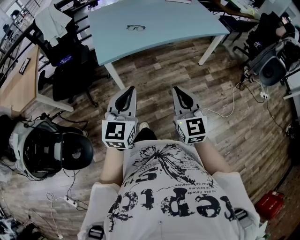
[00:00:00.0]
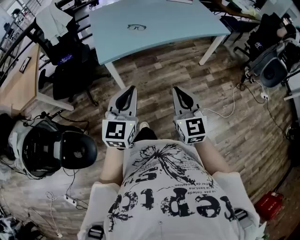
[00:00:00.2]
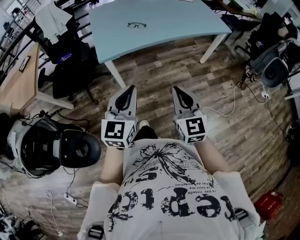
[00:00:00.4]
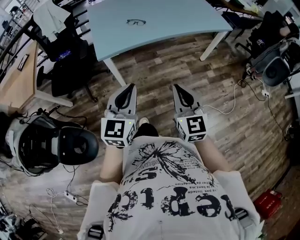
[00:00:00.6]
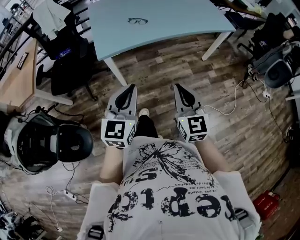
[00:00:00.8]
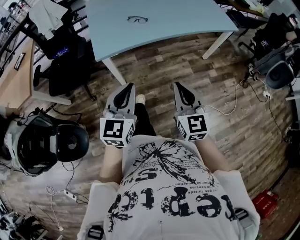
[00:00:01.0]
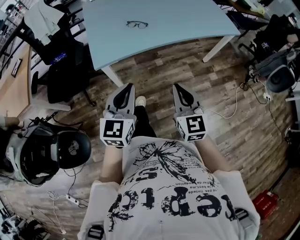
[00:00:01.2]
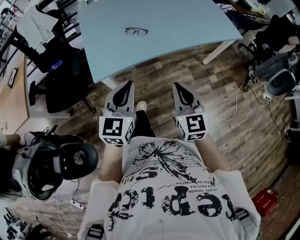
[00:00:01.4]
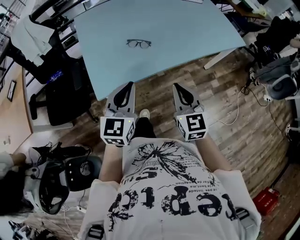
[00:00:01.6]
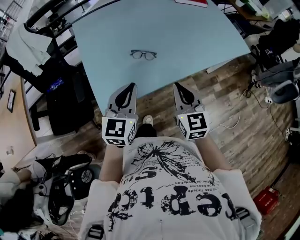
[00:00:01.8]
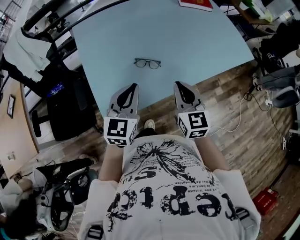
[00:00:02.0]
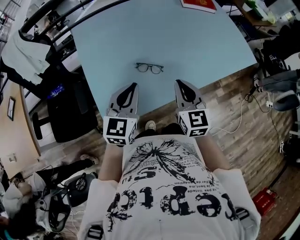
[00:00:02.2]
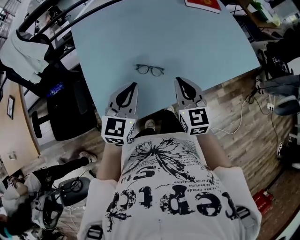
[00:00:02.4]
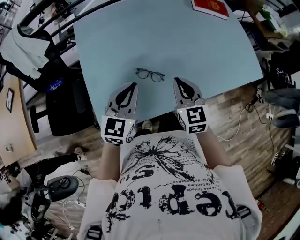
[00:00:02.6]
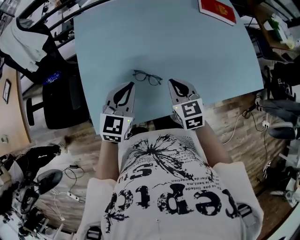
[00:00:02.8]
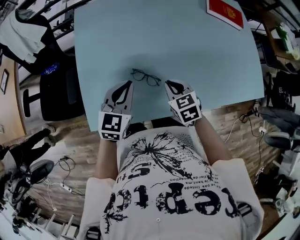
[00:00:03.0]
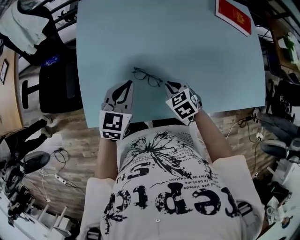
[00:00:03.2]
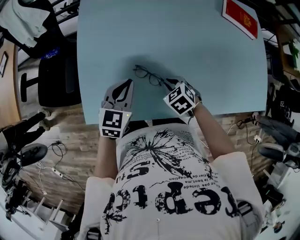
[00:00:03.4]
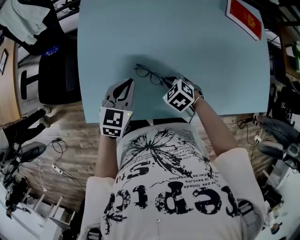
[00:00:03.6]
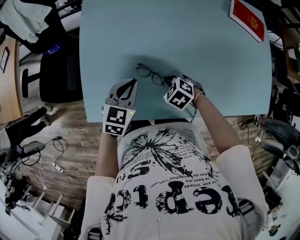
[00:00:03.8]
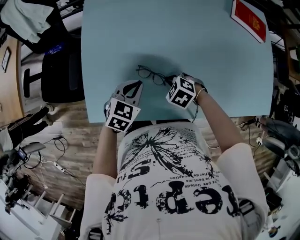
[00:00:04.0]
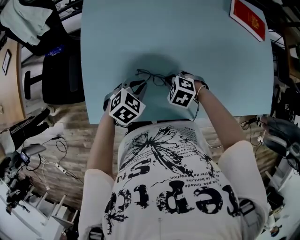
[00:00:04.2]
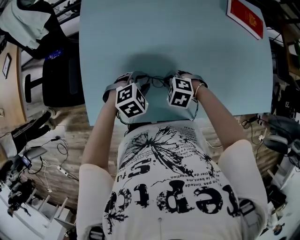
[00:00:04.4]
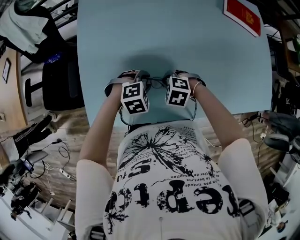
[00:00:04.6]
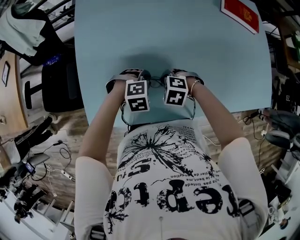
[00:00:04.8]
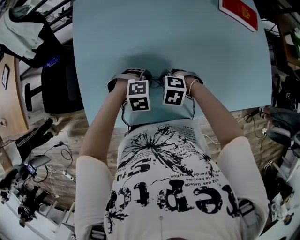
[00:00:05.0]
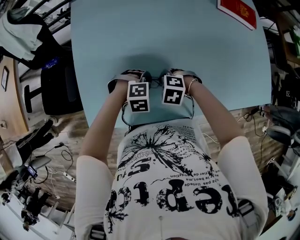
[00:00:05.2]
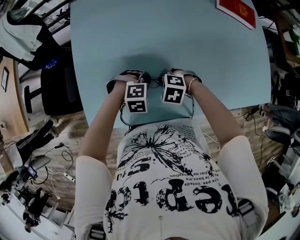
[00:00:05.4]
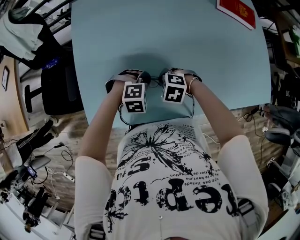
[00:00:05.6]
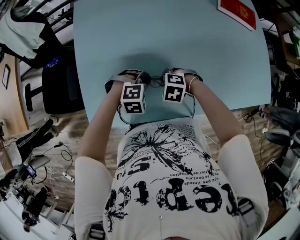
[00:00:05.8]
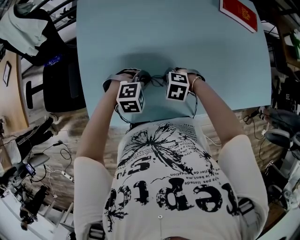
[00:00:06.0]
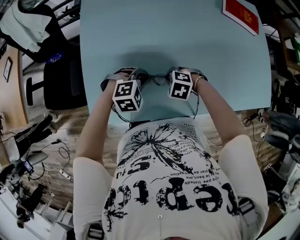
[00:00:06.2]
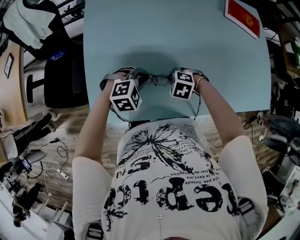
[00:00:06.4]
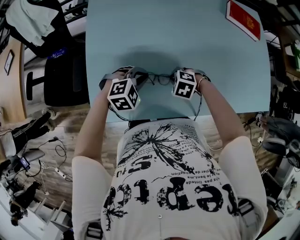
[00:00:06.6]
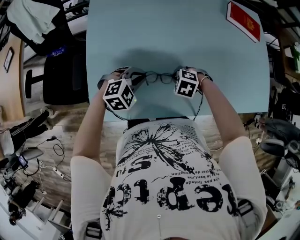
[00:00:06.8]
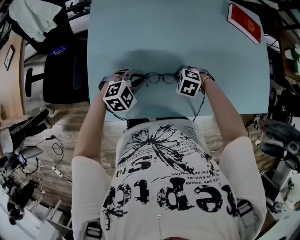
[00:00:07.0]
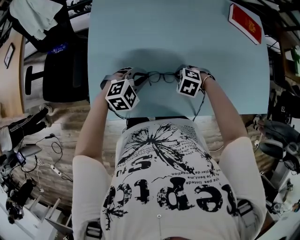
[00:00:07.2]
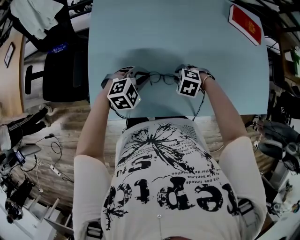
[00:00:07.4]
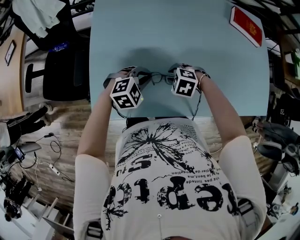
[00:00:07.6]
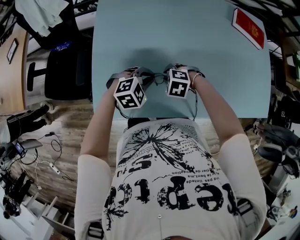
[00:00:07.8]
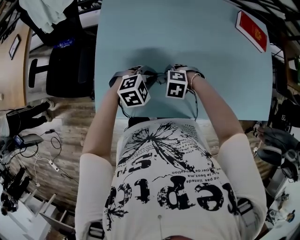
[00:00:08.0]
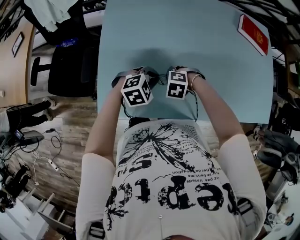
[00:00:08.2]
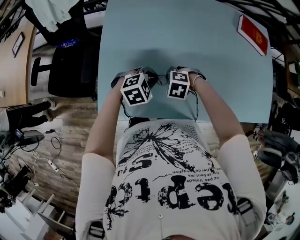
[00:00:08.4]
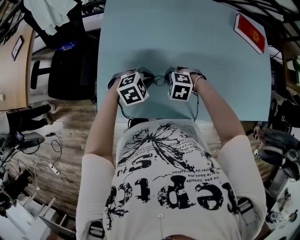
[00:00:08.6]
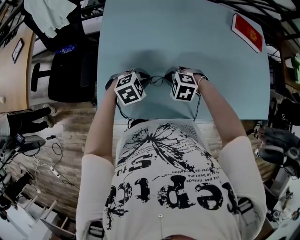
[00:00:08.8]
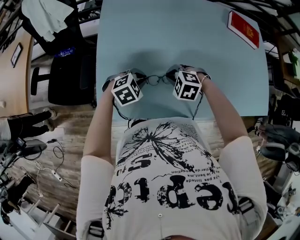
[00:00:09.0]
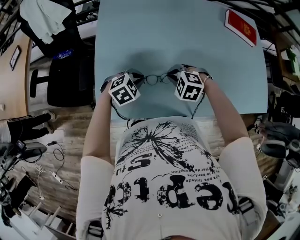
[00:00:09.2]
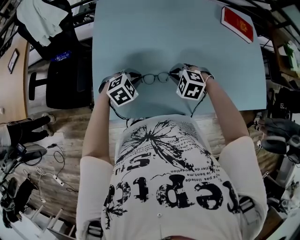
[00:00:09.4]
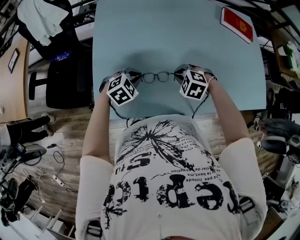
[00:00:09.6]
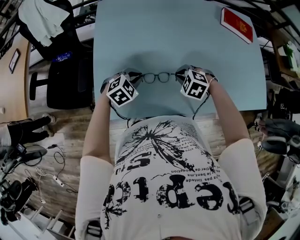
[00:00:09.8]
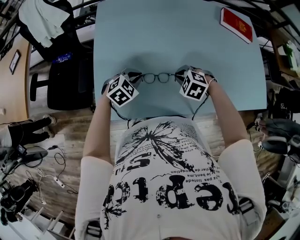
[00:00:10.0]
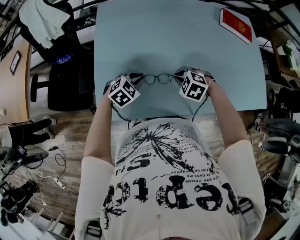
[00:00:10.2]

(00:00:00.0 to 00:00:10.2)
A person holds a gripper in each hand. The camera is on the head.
00:00:00.0 - 00:00:01.4: The two grippers go approximately 20 cm forward.
00:00:01.4 - 00:00:03.0: The pair of grippers is taken forward, about 40 cm. The right gripper points its fingers some 30 degrees further downward.
00:00:03.0 - 00:00:04.4: The grippers both shift downward by approximately 10 cm. The right gripper rolls counterclockwise, seen from behind, by some 50 degrees. The left gripper points its fingers approximately 40 degrees further downward, and opens up.
00:00:04.4 - 00:00:05.8: The left gripper rotates some 30 degrees, and closes up.
00:00:05.8 - 00:00:07.2: The left gripper ends up about 10 cm from where it was, and changes its angle by approximately 20 degrees.
00:00:07.2 - 00:00:08.8: The right gripper changes place by roughly 10 cm.
00:00:08.8 - 00:00:10.2: The right gripper heads to the right, covering approximately 5 cm.

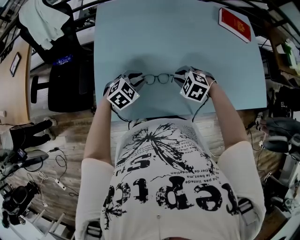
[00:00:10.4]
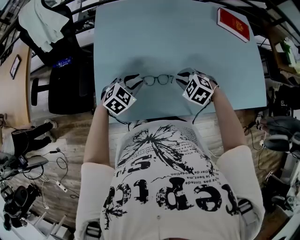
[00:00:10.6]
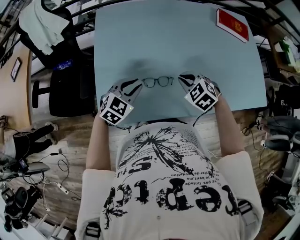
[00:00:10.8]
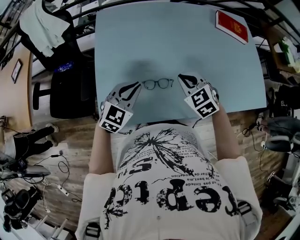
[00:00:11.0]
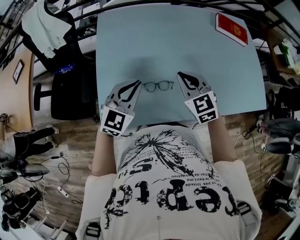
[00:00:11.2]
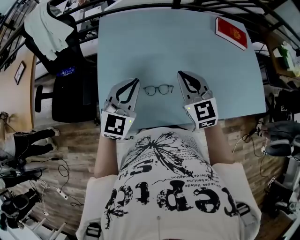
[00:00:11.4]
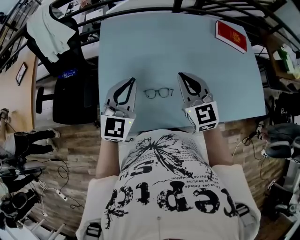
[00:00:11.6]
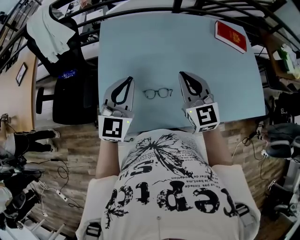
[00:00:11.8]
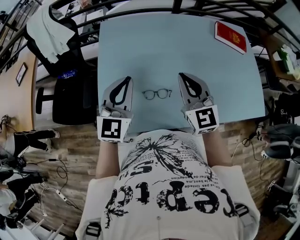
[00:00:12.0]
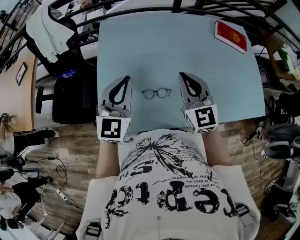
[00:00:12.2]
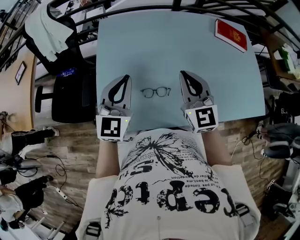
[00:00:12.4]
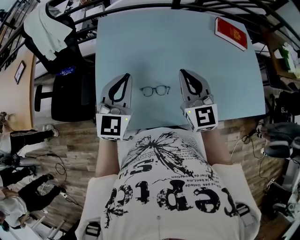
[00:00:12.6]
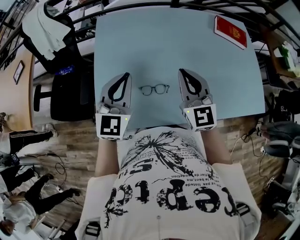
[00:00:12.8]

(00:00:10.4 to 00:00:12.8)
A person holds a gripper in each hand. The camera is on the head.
00:00:10.4 - 00:00:11.6: Both grippers move upward, roughly 20 cm. The right gripper tilts its fingers some 50 degrees upward. Meanwhile the left gripper angles its fingers upward, by about 40 degrees.
00:00:11.6 - 00:00:12.8: The grippers make only small movements.

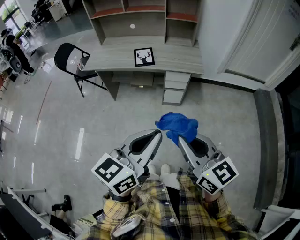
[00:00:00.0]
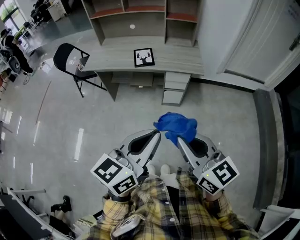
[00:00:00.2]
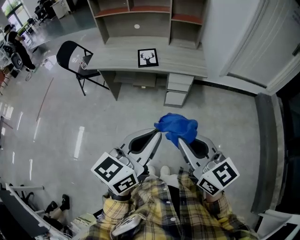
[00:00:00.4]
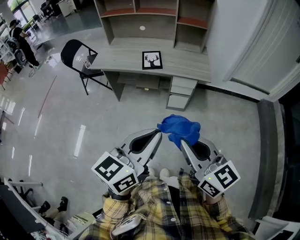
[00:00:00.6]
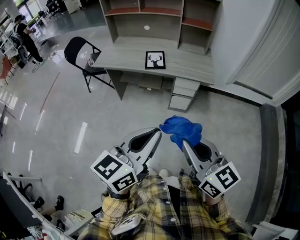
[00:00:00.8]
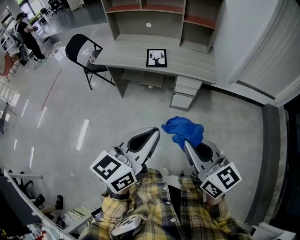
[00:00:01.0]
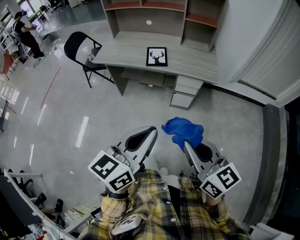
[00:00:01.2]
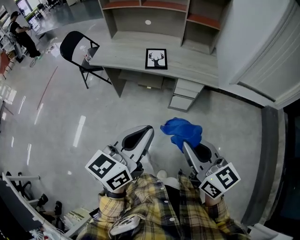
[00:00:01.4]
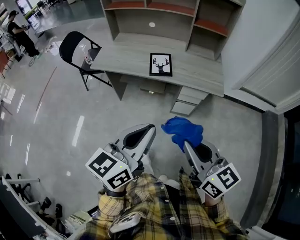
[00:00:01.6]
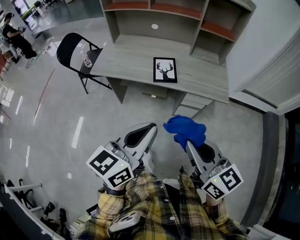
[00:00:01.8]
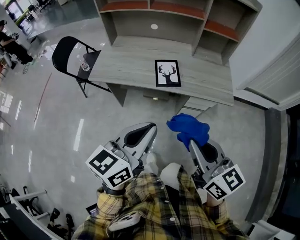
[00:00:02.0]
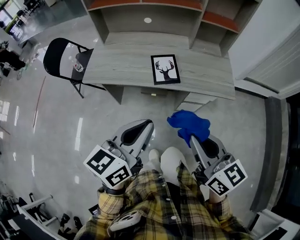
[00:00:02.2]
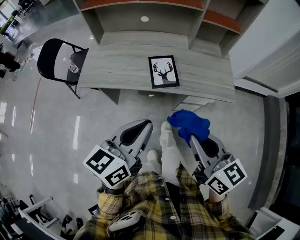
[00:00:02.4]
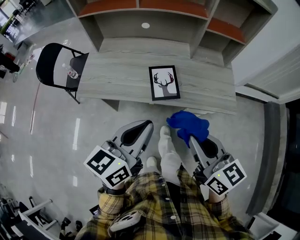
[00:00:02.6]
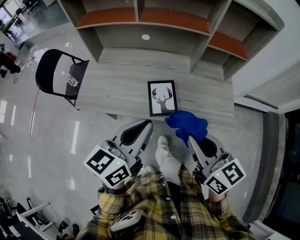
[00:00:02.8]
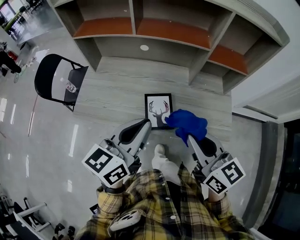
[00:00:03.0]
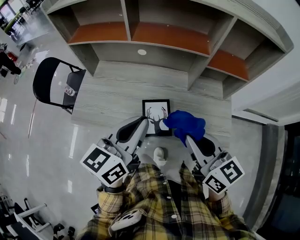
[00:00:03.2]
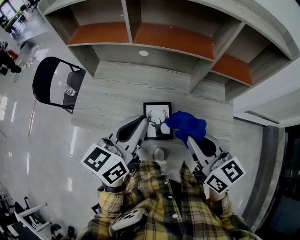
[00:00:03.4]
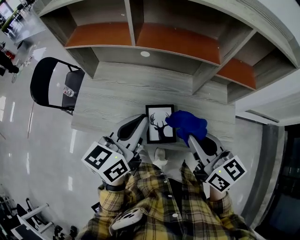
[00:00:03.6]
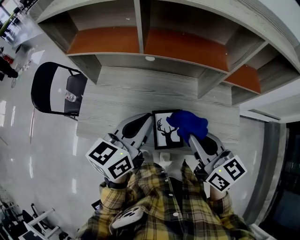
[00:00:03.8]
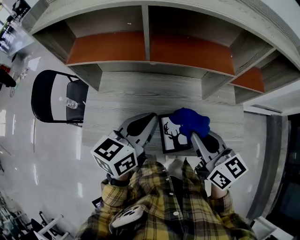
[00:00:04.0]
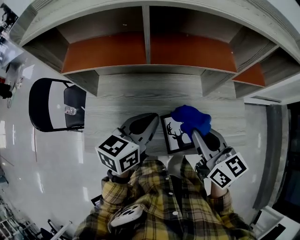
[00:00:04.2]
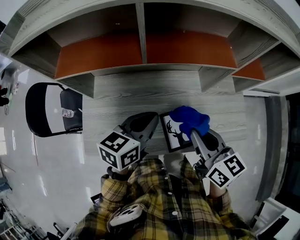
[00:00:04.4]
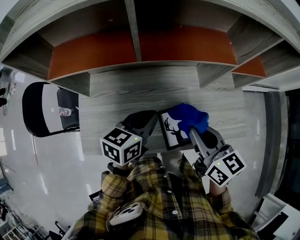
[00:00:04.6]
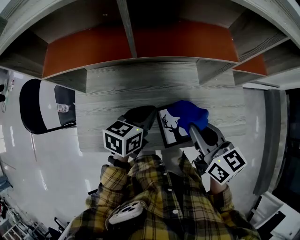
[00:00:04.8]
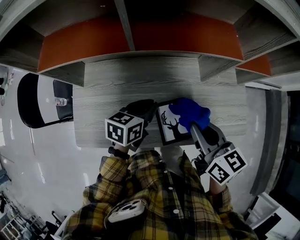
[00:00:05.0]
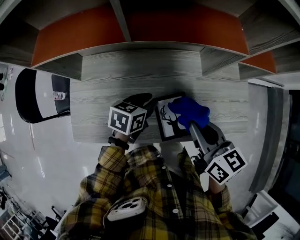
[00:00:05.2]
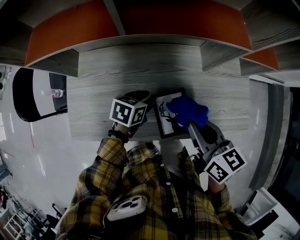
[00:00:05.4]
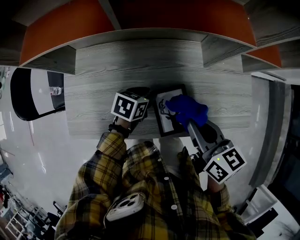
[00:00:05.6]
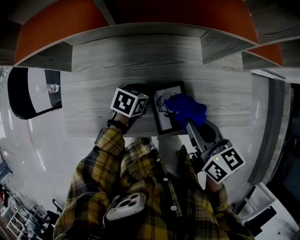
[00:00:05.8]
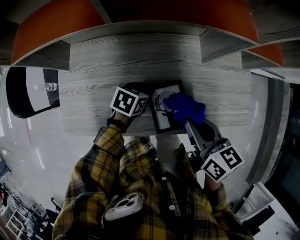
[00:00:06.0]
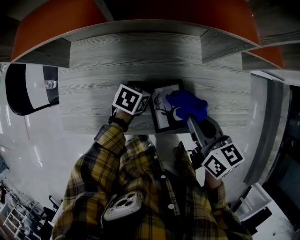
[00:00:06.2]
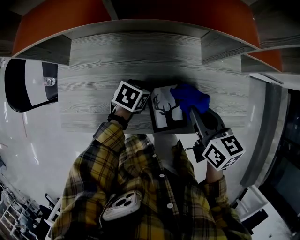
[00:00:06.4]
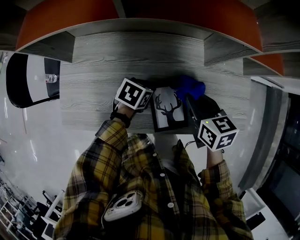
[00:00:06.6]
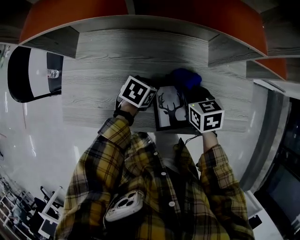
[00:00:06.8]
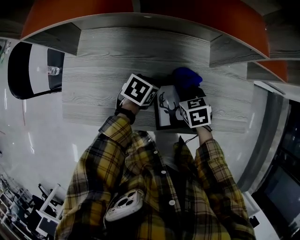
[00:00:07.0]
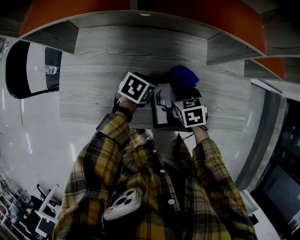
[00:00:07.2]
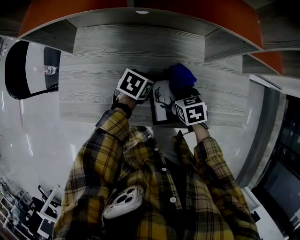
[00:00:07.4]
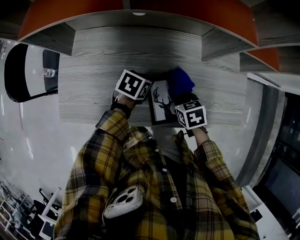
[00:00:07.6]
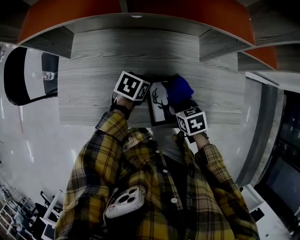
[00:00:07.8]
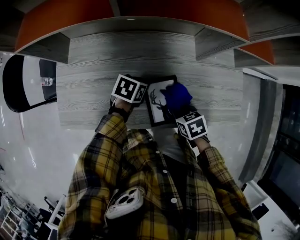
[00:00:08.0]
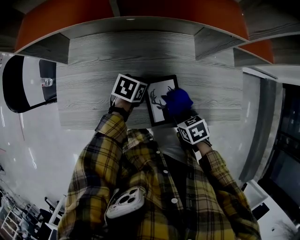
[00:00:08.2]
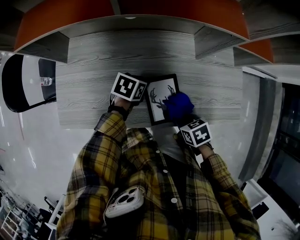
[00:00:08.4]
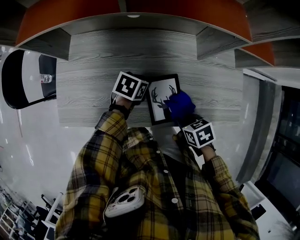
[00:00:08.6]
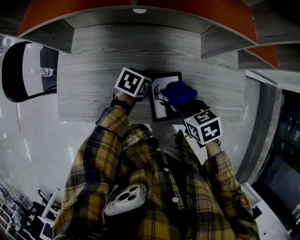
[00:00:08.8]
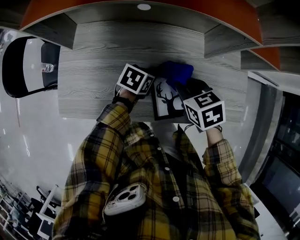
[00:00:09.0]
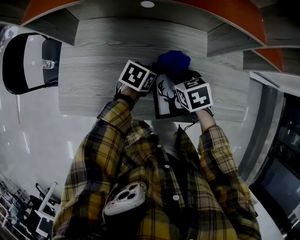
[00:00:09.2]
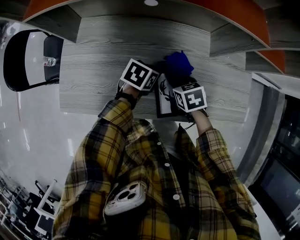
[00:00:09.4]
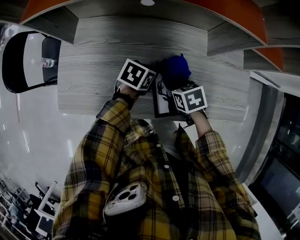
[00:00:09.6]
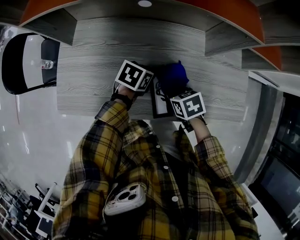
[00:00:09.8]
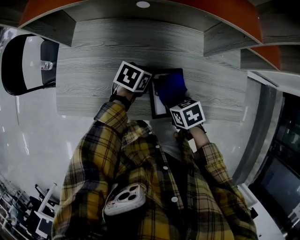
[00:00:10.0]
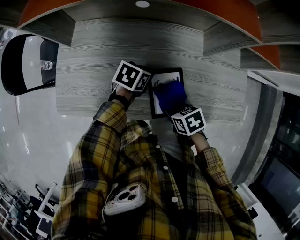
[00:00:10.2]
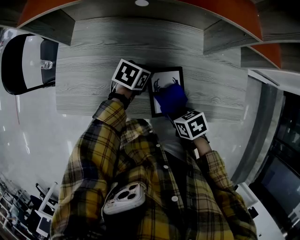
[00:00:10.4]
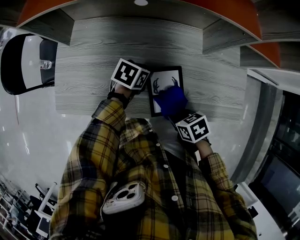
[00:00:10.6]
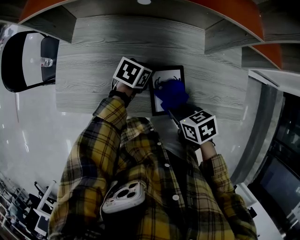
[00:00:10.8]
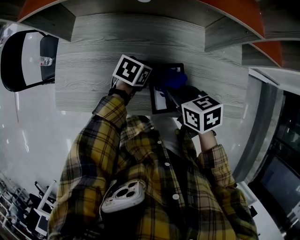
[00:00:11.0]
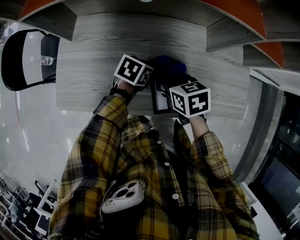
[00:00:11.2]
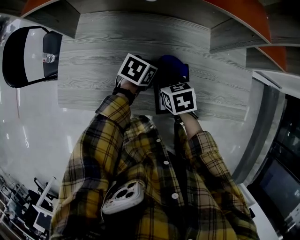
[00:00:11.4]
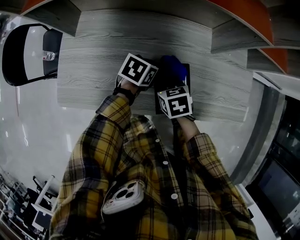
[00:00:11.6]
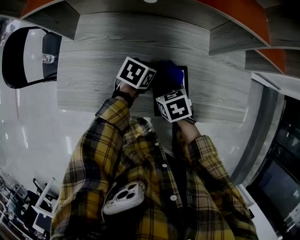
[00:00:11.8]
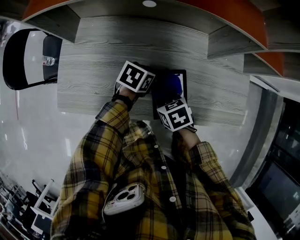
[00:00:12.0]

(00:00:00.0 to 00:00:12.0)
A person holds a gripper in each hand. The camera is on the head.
00:00:00.0 - 00:00:01.6: The right gripper travels forward by some 15 cm. The left gripper travels forward and to the left by some 20 cm.
00:00:01.6 - 00:00:03.0: The pair of grippers is taken forward, roughly 40 cm.
00:00:03.0 - 00:00:04.4: The left gripper heads forward and downward, covering roughly 20 cm, and swivels some 20 degrees. Meanwhile the right gripper heads forward and to the left, covering approximately 20 cm.
00:00:04.4 - 00:00:06.0: The left gripper is displaced downward by roughly 25 cm, tilts its fingers approximately 30 degrees downward, and opens, while the right gripper travels downward by roughly 10 cm.
00:00:06.0 - 00:00:07.6: The right gripper goes some 20 cm downward, and angles its fingers downward, by roughly 30 degrees.
00:00:07.6 - 00:00:09.0: The right gripper shifts roughly 10 cm upward.
00:00:09.0 - 00:00:10.4: The right gripper changes place by approximately 15 cm, and turns by roughly 30 degrees.
00:00:10.4 - 00:00:12.0: The right gripper moves about 10 cm upward and comes back.
